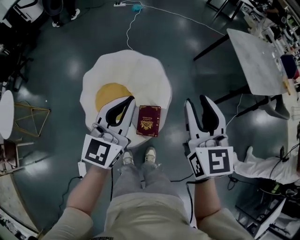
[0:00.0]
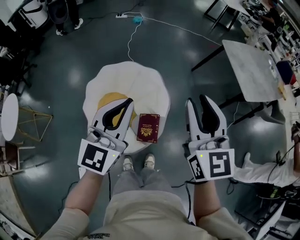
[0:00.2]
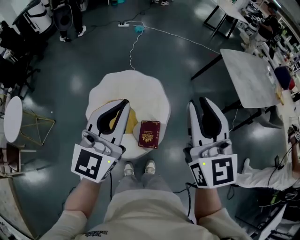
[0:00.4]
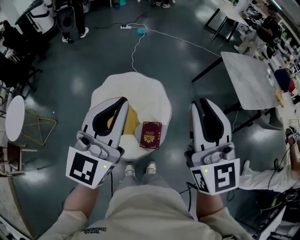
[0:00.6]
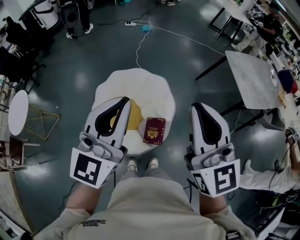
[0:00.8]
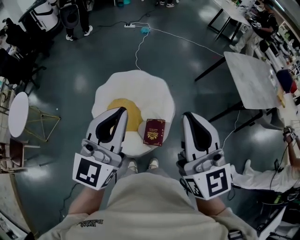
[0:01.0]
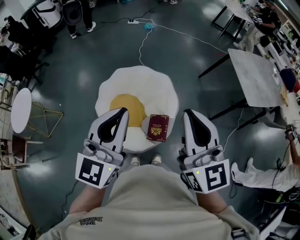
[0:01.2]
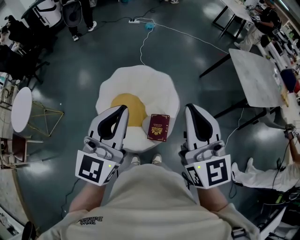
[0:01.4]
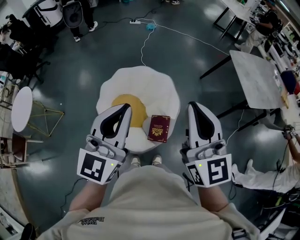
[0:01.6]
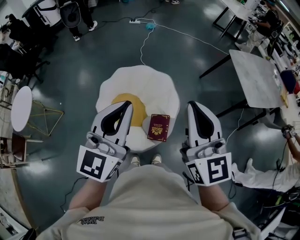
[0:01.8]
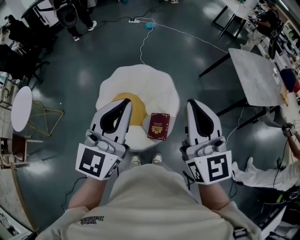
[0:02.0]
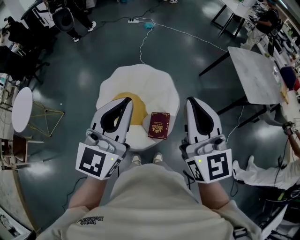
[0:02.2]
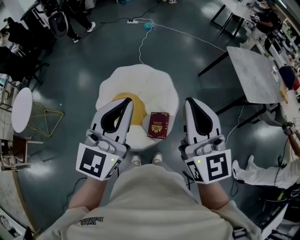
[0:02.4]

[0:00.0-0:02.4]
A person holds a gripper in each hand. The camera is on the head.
0:00.0 to 0:01.2: The grippers both shift upward, backward and to the left by roughly 20 cm. The right gripper closes up.
0:01.2 to 0:02.4: The grippers move only a little.

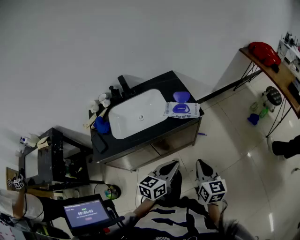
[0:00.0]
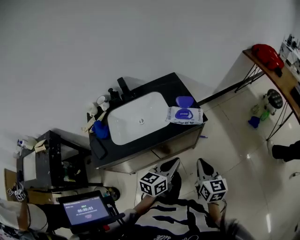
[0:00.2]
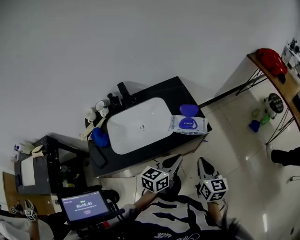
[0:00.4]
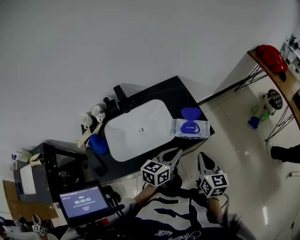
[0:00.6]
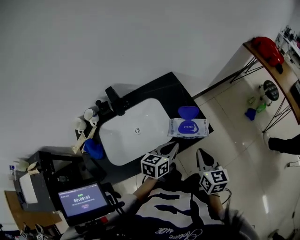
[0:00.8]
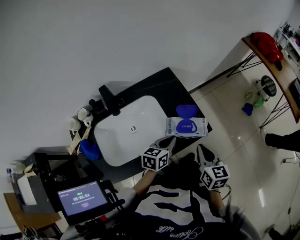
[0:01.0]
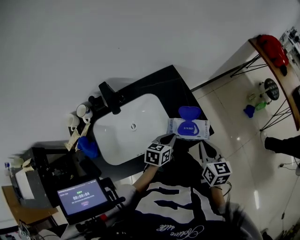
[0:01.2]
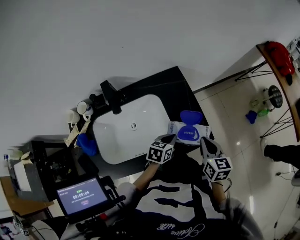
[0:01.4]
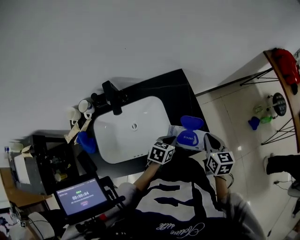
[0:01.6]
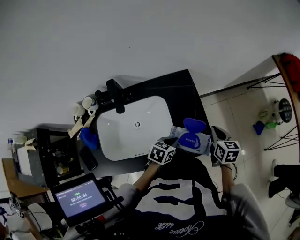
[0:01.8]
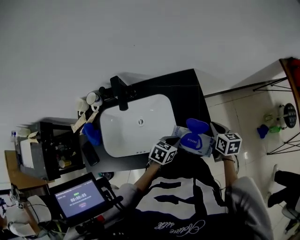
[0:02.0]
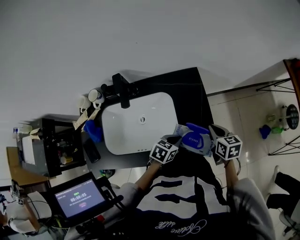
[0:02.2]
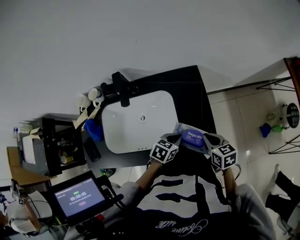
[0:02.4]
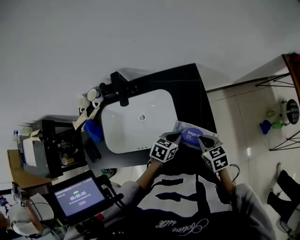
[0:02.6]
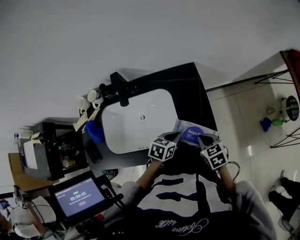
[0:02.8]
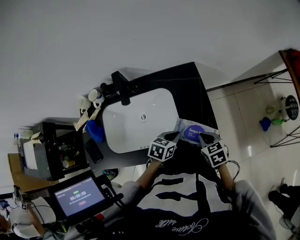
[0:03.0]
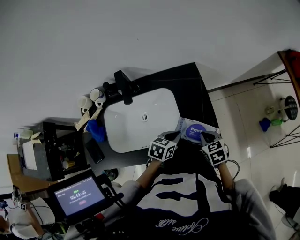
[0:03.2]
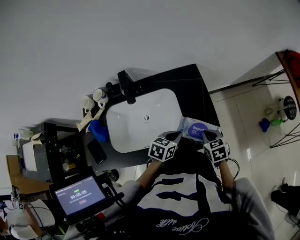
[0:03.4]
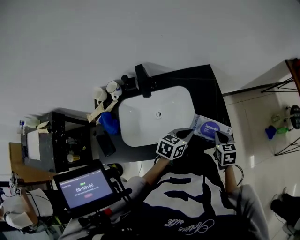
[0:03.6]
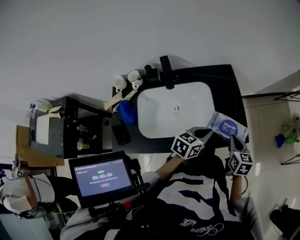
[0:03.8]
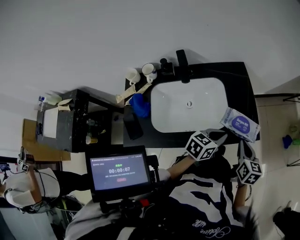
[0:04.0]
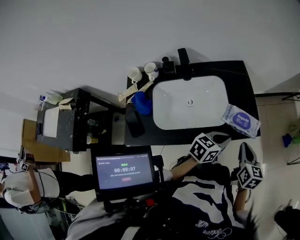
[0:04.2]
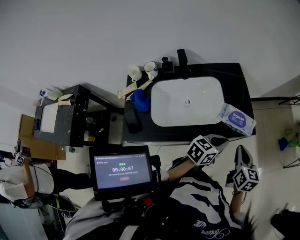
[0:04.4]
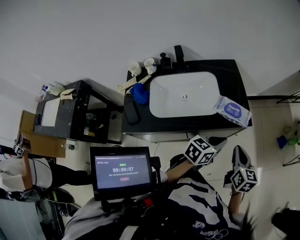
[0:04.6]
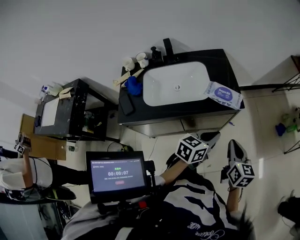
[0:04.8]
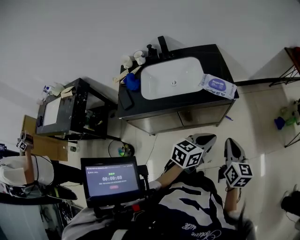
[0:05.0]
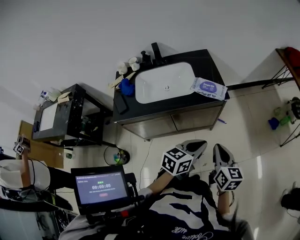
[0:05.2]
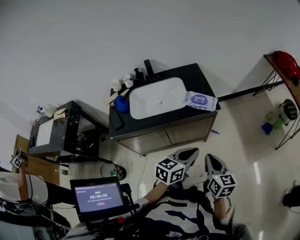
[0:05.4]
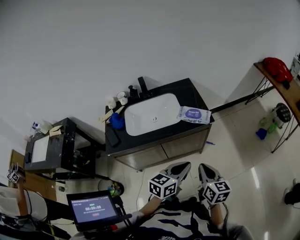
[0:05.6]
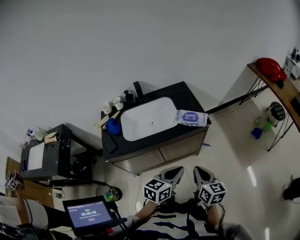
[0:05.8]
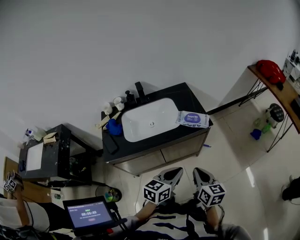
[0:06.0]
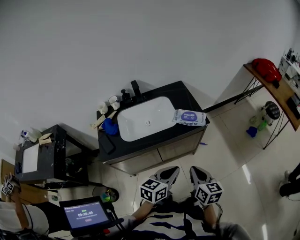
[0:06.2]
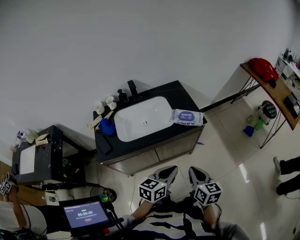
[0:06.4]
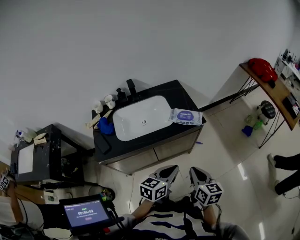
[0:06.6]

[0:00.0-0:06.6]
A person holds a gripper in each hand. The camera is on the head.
0:00.0 to 0:01.6: The right gripper moves forward, approximately 35 cm. Meanwhile the left gripper is displaced forward and downward by some 35 cm, and changes its angle by some 30 degrees.
0:01.6 to 0:03.2: The right gripper goes roughly 10 cm downward and to the left, moves some 10 cm forward and comes back, and swivels about 30 degrees.
0:03.2 to 0:05.0: The left gripper heads backward, to the right and upward, covering roughly 35 cm, and rotates approximately 20 degrees; the right gripper moves backward and upward, roughly 35 cm, and tips its fingers upward by about 30 degrees.
0:05.0 to 0:06.6: Both grippers move to the left and backward, some 10 cm.

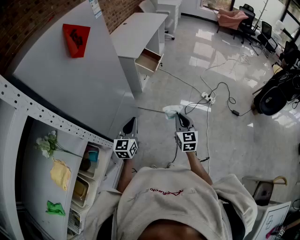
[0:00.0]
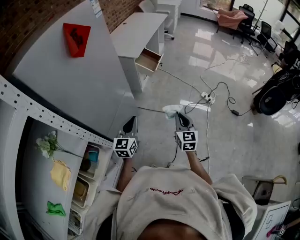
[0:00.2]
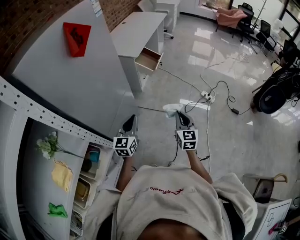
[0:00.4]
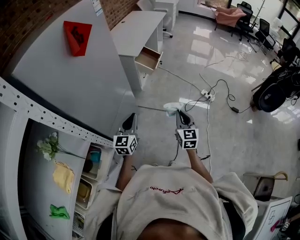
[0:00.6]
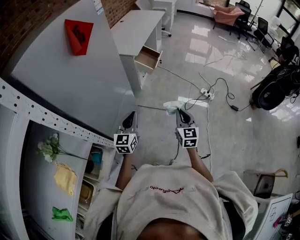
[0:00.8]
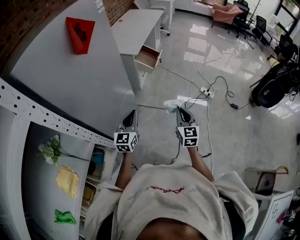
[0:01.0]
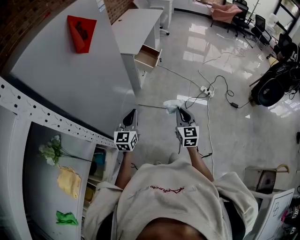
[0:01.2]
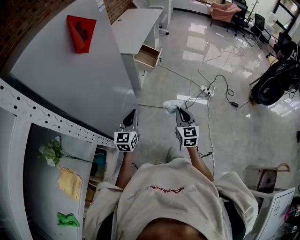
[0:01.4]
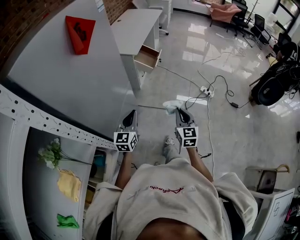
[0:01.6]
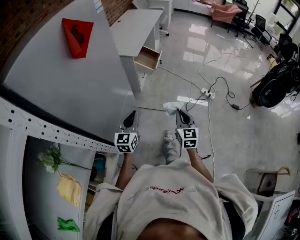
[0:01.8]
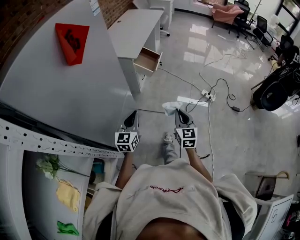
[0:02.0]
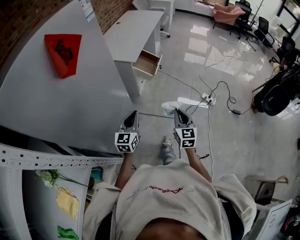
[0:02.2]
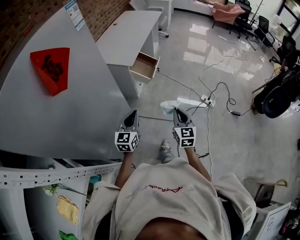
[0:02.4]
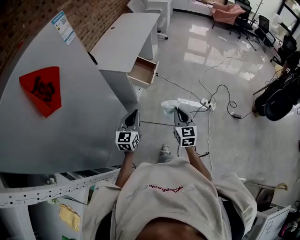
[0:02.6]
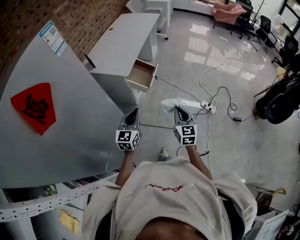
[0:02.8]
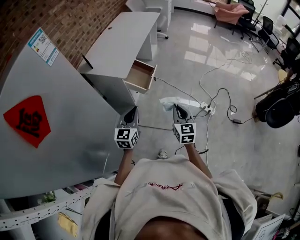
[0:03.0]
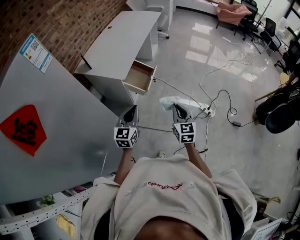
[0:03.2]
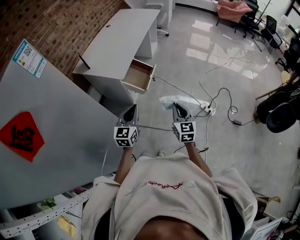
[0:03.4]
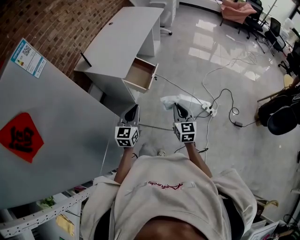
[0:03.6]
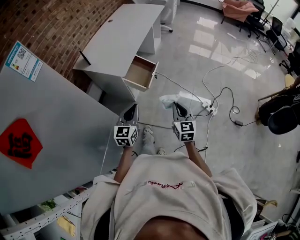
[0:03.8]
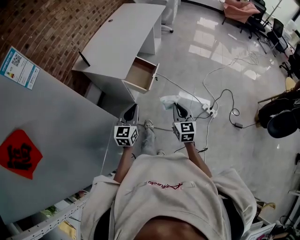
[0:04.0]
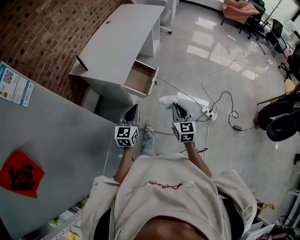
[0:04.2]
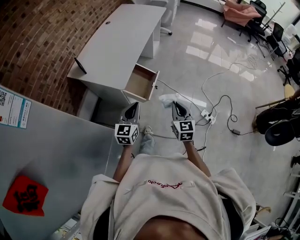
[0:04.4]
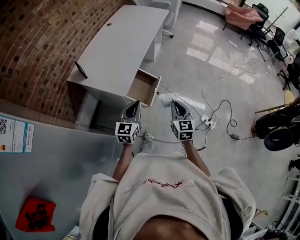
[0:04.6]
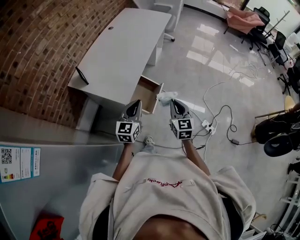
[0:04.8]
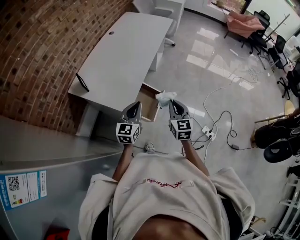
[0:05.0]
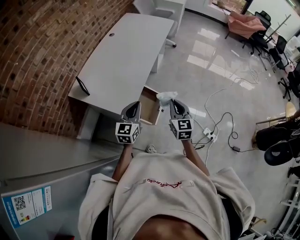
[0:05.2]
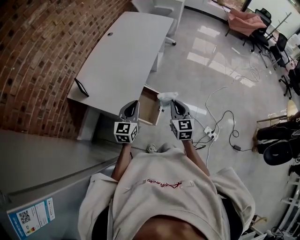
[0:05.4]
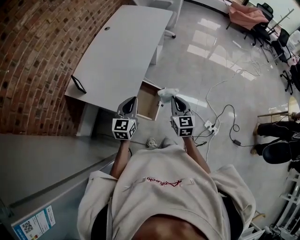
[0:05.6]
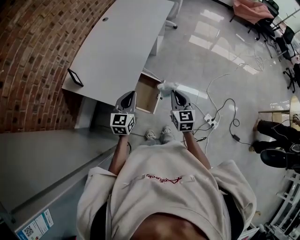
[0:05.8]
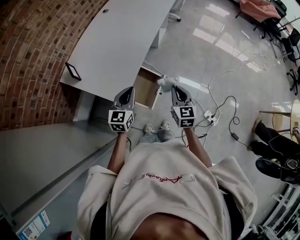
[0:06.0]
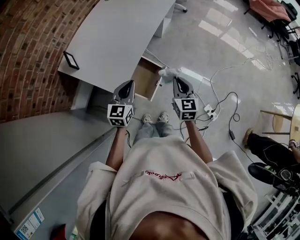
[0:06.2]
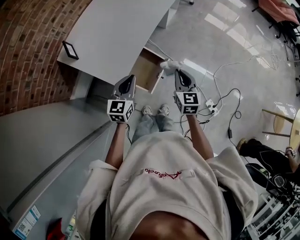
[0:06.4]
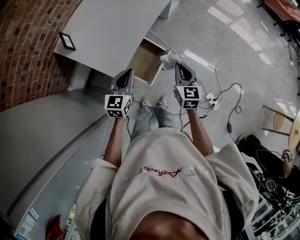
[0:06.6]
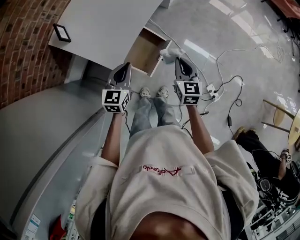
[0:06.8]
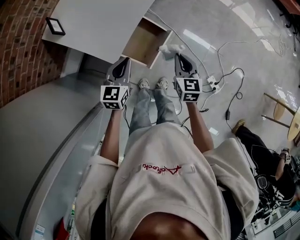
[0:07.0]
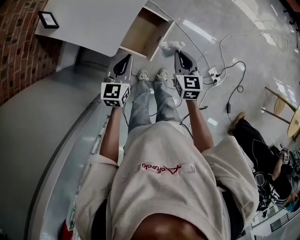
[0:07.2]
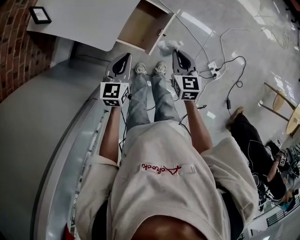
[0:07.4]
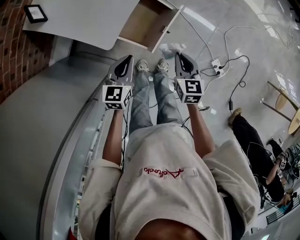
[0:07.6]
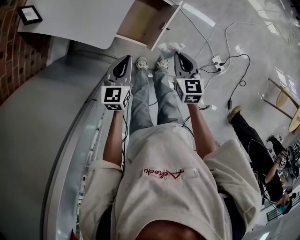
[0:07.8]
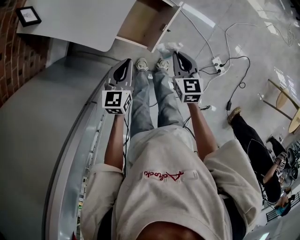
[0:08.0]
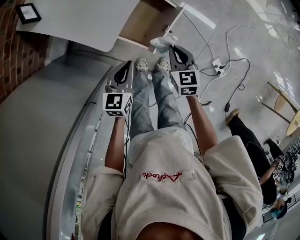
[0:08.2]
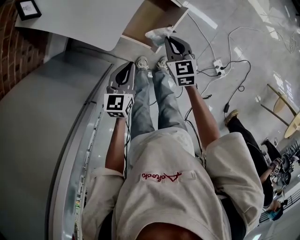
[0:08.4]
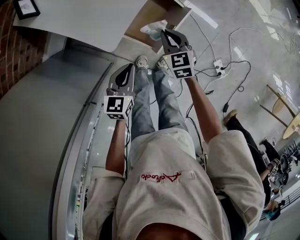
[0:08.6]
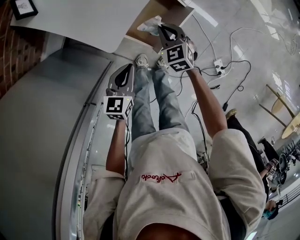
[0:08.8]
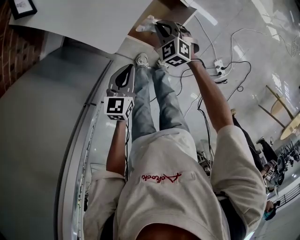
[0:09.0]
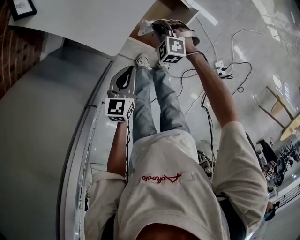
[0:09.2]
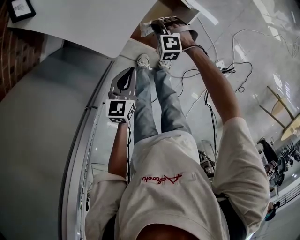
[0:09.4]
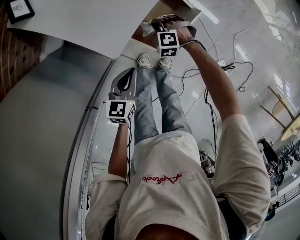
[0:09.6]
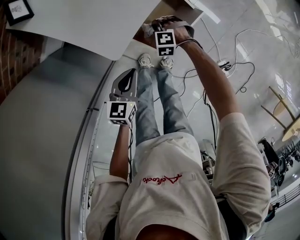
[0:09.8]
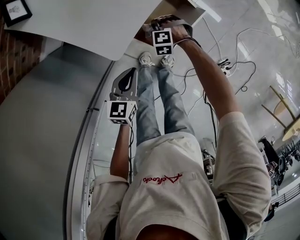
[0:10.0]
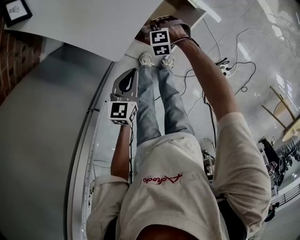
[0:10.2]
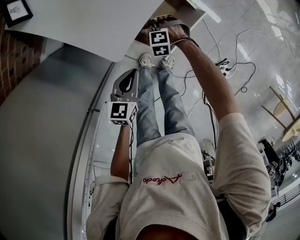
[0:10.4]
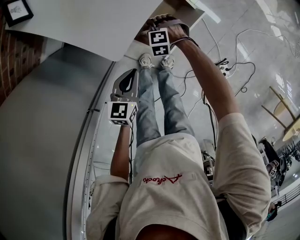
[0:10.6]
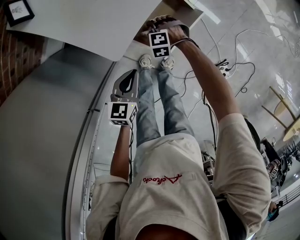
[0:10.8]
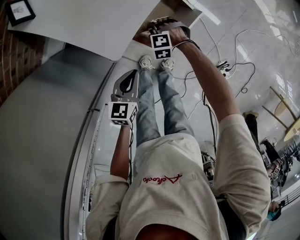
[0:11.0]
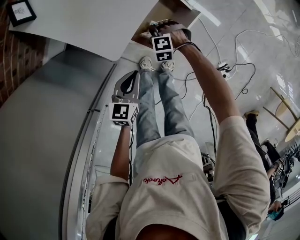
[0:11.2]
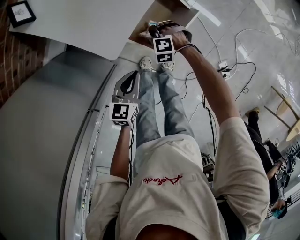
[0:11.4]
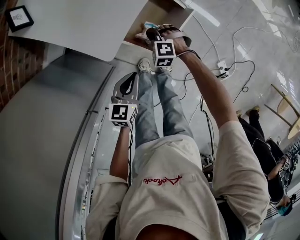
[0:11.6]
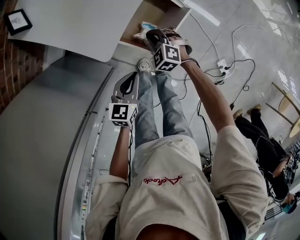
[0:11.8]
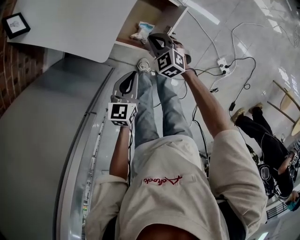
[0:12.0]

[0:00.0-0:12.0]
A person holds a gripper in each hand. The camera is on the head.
0:00.0 to 0:01.6: The two grippers go roughly 5 cm to the left.
0:01.6 to 0:03.0: The grippers both shift forward by roughly 35 cm.
0:03.0 to 0:04.4: Both grippers move forward, about 20 cm.
0:04.4 to 0:06.0: Both grippers travel together forward, about 25 cm.
0:06.0 to 0:07.6: The grippers both shift downward by approximately 20 cm.
0:07.6 to 0:09.0: The left gripper shifts roughly 5 cm downward, while the right gripper travels downward, to the left and forward by some 25 cm, and rolls counterclockwise, seen from behind, by approximately 50 degrees.
0:09.0 to 0:10.4: The right gripper is displaced downward by some 15 cm, turns by about 50 degrees, and opens its fingers.
0:10.4 to 0:12.0: The right gripper moves upward, roughly 10 cm, rolls clockwise, seen from behind, by approximately 50 degrees, and closes its fingers.

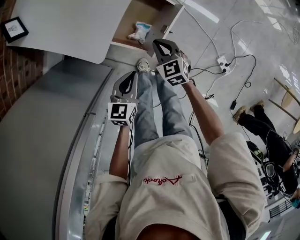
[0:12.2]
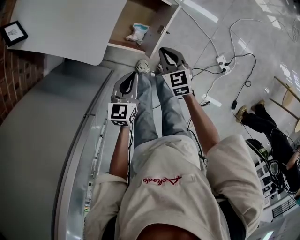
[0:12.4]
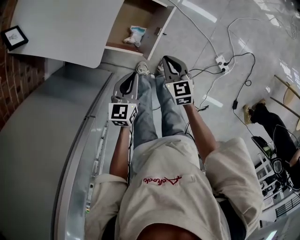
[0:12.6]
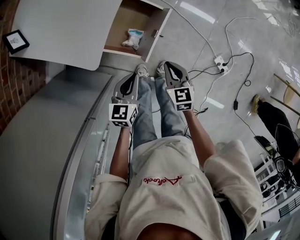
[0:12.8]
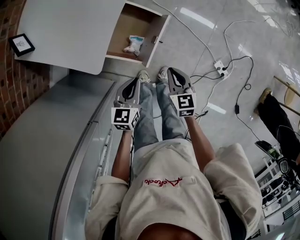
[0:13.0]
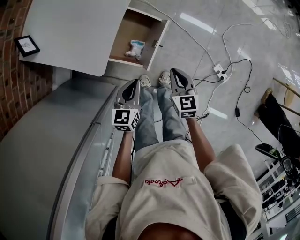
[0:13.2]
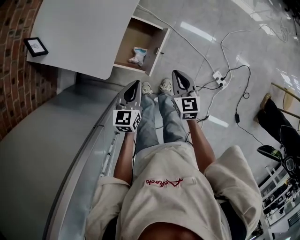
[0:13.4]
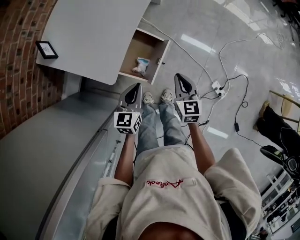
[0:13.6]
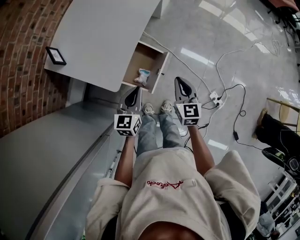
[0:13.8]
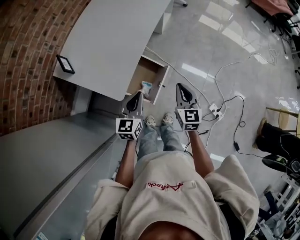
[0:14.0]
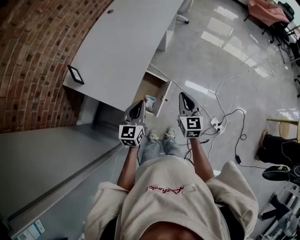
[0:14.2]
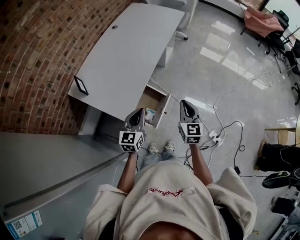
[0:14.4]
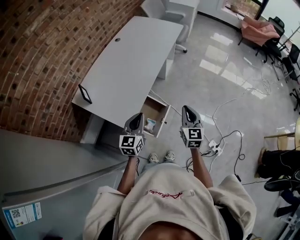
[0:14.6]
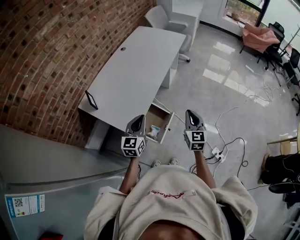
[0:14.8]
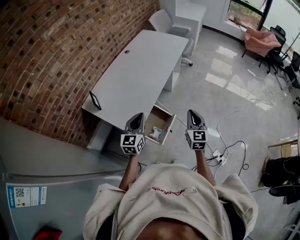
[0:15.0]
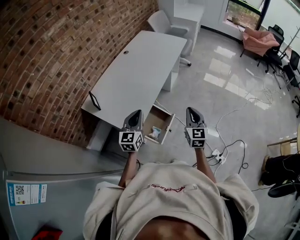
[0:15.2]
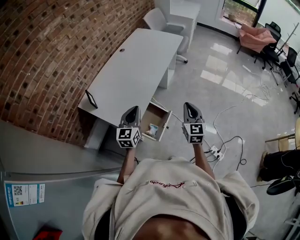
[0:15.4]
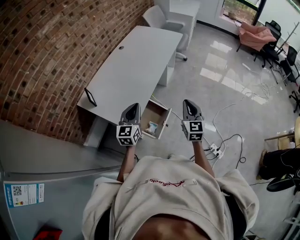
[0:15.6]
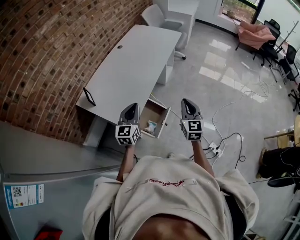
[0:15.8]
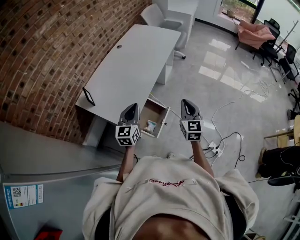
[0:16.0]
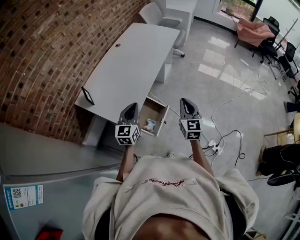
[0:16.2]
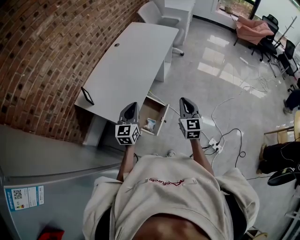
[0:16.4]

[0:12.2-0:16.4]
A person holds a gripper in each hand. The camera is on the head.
0:12.2 to 0:13.6: The left gripper goes some 15 cm upward and forward. Meanwhile the right gripper travels upward and to the right by some 20 cm, and changes its angle by about 30 degrees.
0:13.6 to 0:15.0: Both grippers move upward, roughly 25 cm. The left gripper rotates about 20 degrees. Meanwhile the right gripper turns by about 20 degrees.
0:15.0 to 0:16.4: There are only small adjustments of the grippers.
